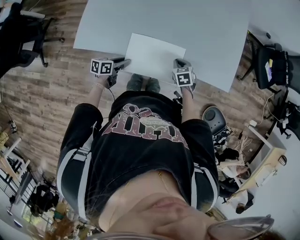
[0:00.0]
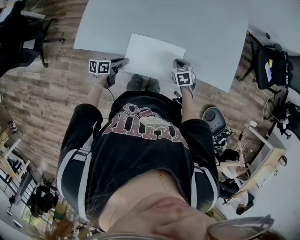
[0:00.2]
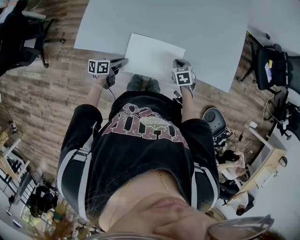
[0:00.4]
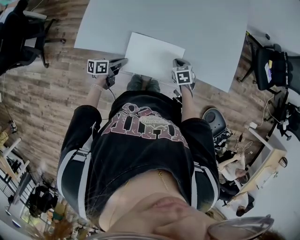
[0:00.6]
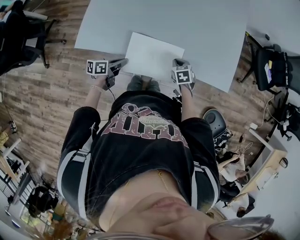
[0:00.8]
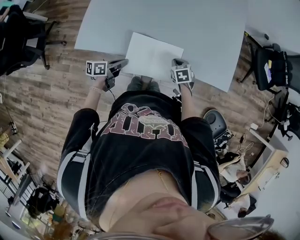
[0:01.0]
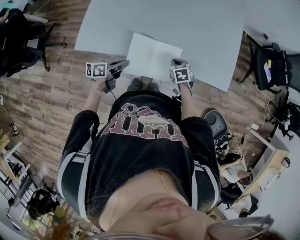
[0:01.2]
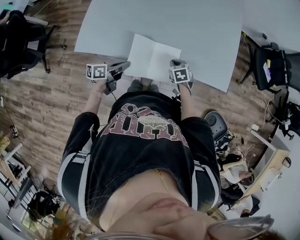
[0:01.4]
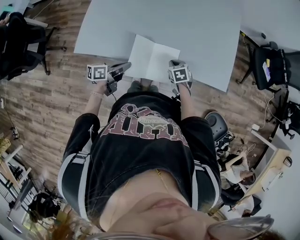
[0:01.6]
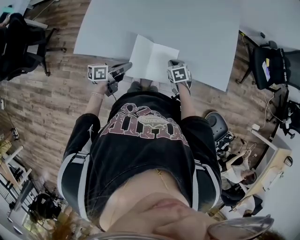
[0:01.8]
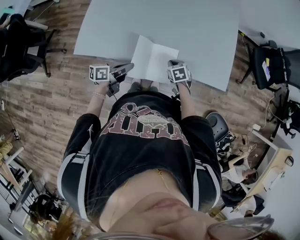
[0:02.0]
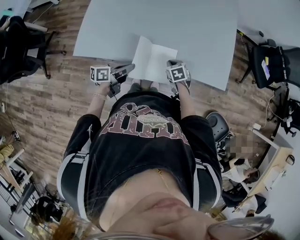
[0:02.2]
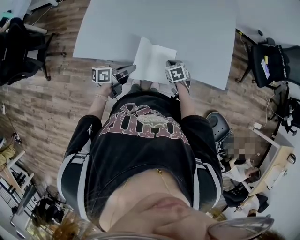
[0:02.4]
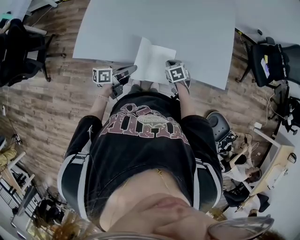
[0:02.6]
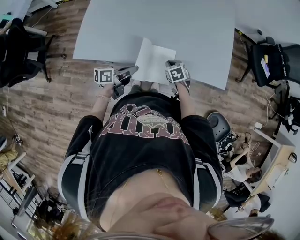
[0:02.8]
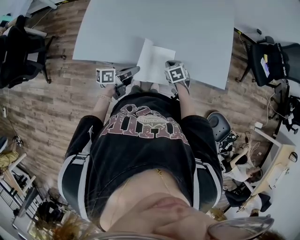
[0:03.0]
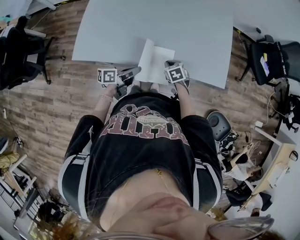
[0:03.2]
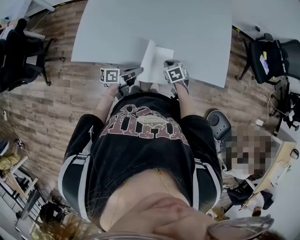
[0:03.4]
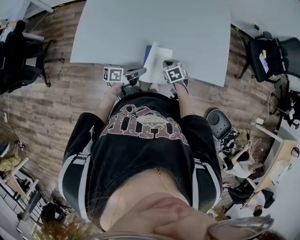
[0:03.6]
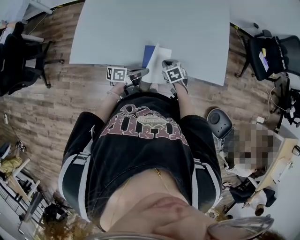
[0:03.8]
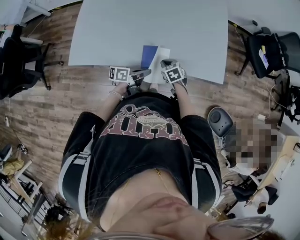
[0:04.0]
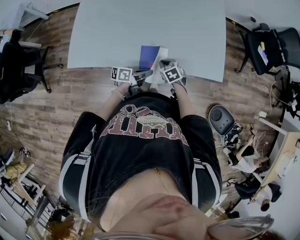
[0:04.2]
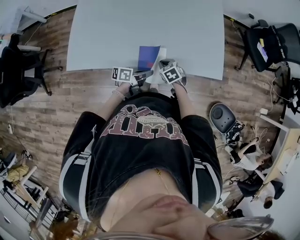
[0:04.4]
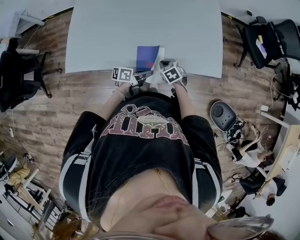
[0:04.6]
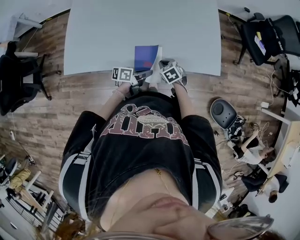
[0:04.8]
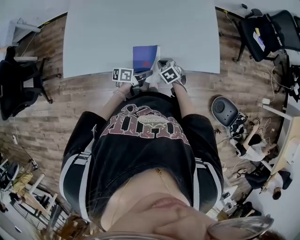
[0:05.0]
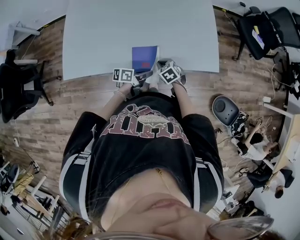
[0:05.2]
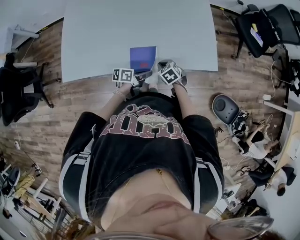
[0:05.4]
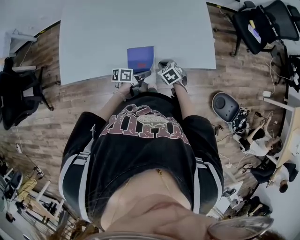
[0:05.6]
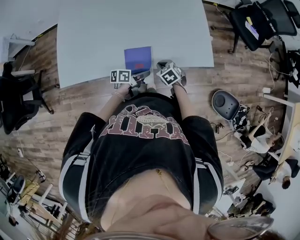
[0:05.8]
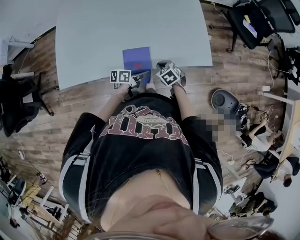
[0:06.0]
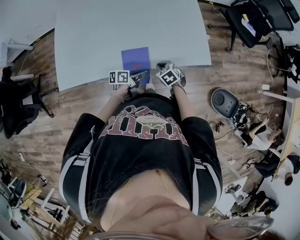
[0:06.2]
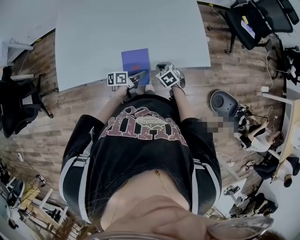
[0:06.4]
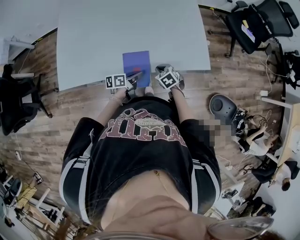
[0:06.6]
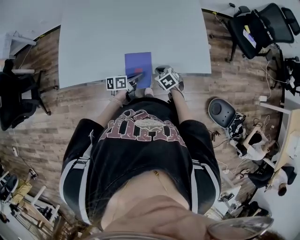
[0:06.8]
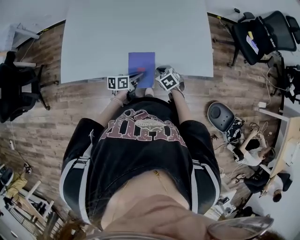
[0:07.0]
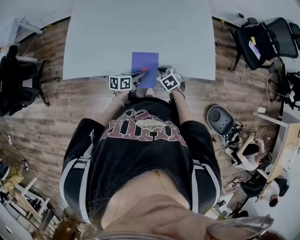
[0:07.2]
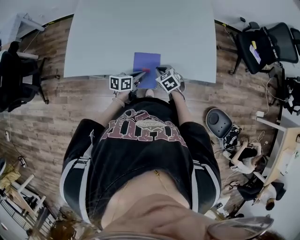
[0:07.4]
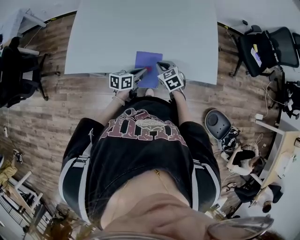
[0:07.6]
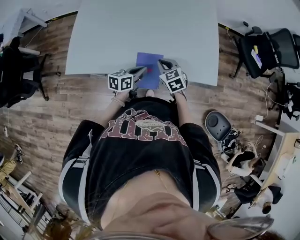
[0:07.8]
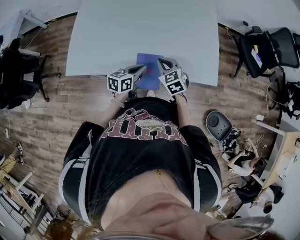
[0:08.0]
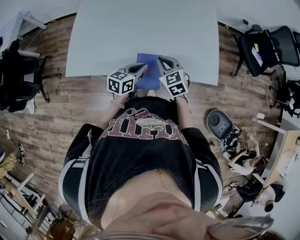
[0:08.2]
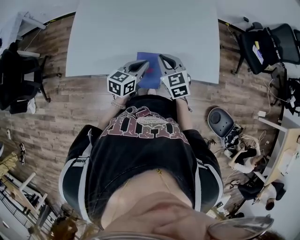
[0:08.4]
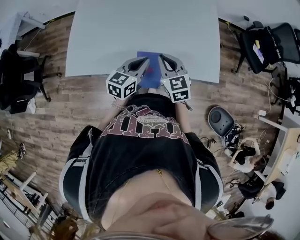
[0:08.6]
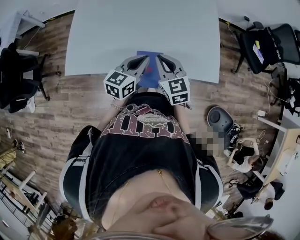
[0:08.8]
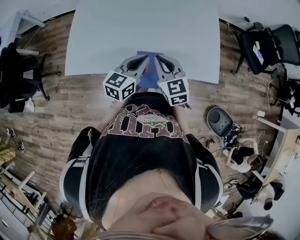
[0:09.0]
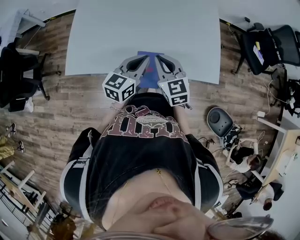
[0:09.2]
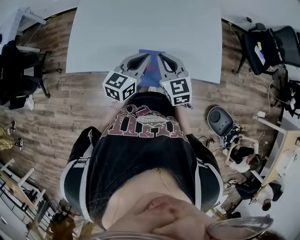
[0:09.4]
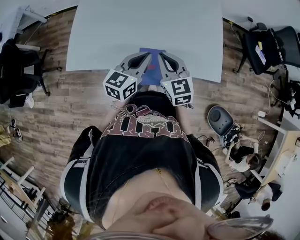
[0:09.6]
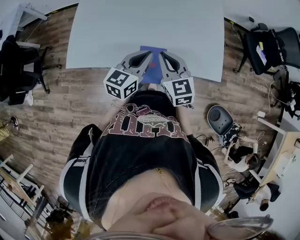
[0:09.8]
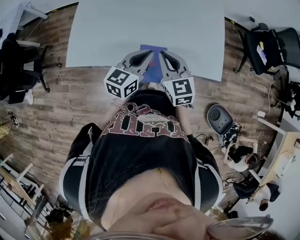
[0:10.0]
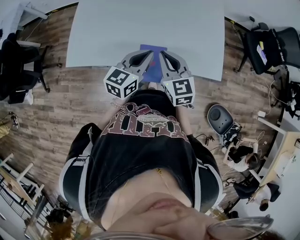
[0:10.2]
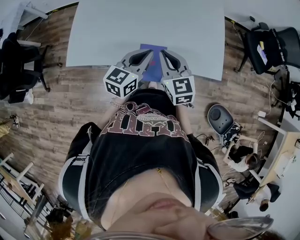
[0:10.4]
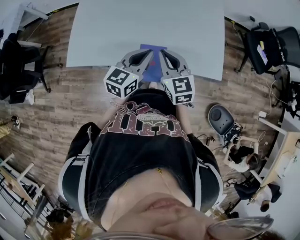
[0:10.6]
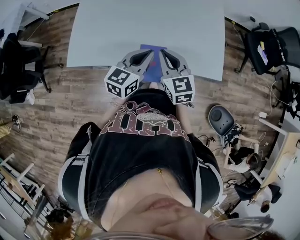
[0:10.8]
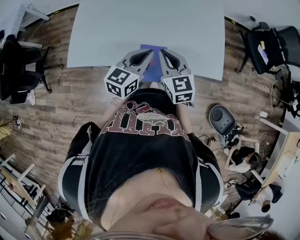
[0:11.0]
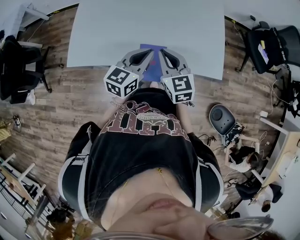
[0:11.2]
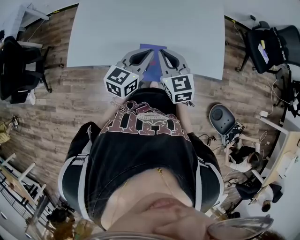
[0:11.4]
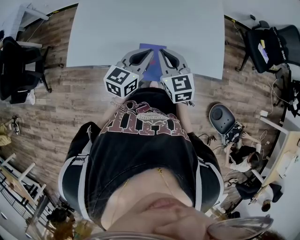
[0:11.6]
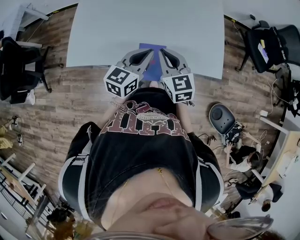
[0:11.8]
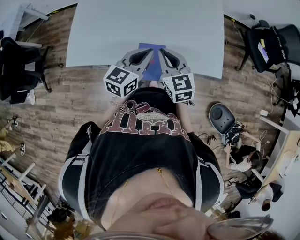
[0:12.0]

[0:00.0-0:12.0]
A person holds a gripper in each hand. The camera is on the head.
0:00.0 to 0:01.6: The left gripper goes roughly 10 cm upward, and closes its fingers.
0:01.6 to 0:03.0: The left gripper moves to the right, roughly 5 cm.
0:03.0 to 0:04.4: The left gripper is displaced to the right and downward by some 10 cm.
0:04.4 to 0:06.0: Both grippers travel together to the right, roughly 5 cm.
0:06.0 to 0:07.6: The two grippers go roughly 10 cm to the left and upward. The left gripper turns by about 30 degrees.
0:07.6 to 0:09.0: Both grippers travel together upward, about 15 cm. The right gripper swivels approximately 20 degrees. Meanwhile the left gripper swivels some 30 degrees.
0:09.0 to 0:10.4: The grippers stay close to where they were, moving slightly.
0:10.4 to 0:12.0: Both grippers stay put.

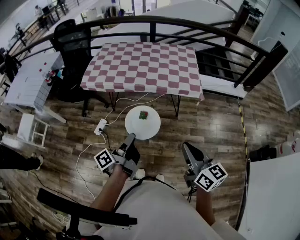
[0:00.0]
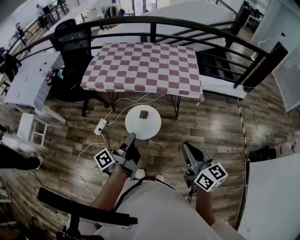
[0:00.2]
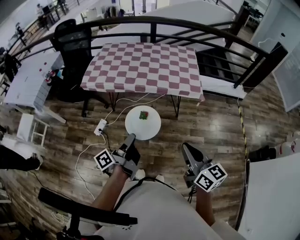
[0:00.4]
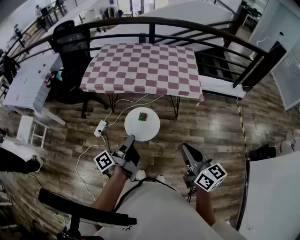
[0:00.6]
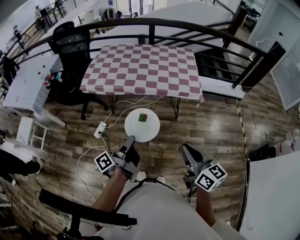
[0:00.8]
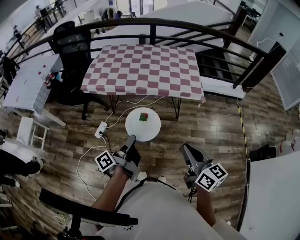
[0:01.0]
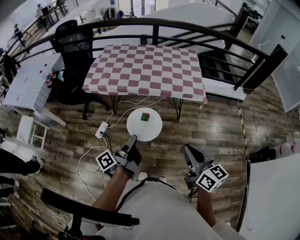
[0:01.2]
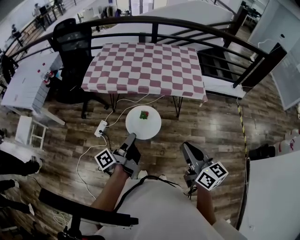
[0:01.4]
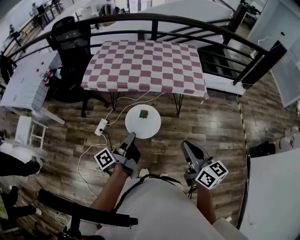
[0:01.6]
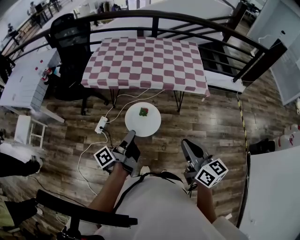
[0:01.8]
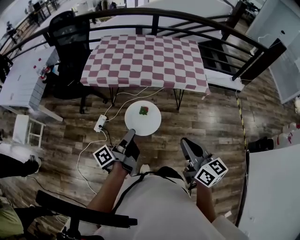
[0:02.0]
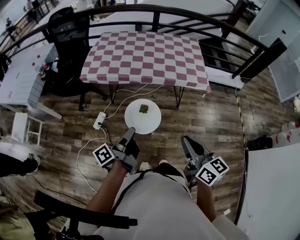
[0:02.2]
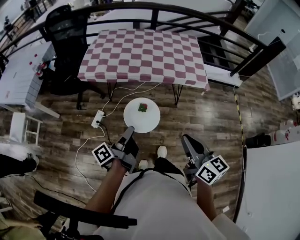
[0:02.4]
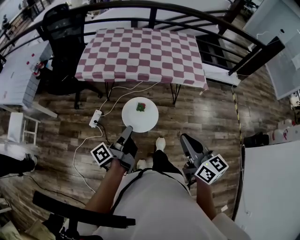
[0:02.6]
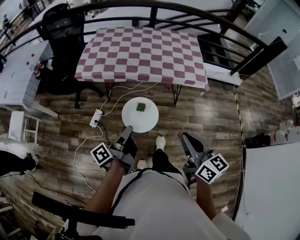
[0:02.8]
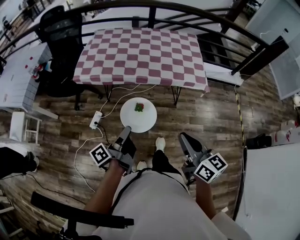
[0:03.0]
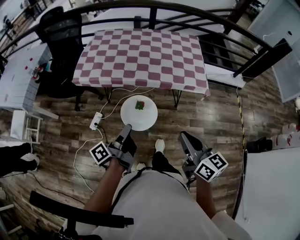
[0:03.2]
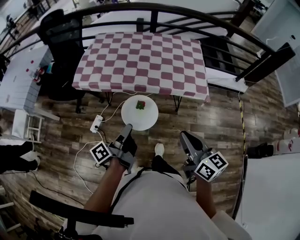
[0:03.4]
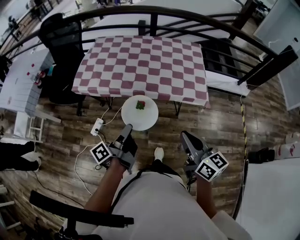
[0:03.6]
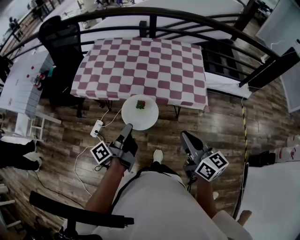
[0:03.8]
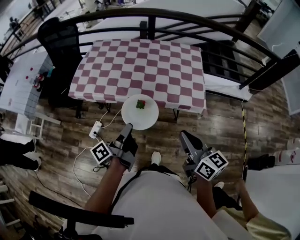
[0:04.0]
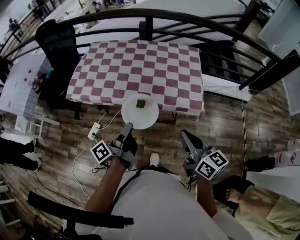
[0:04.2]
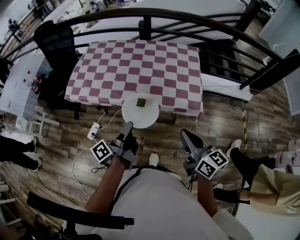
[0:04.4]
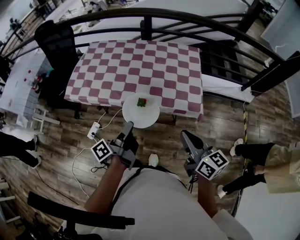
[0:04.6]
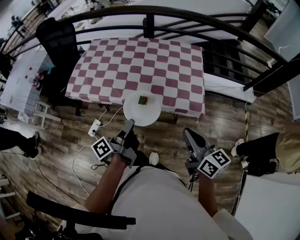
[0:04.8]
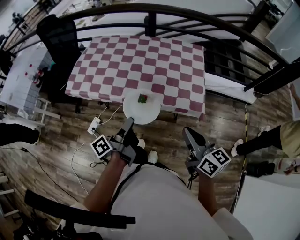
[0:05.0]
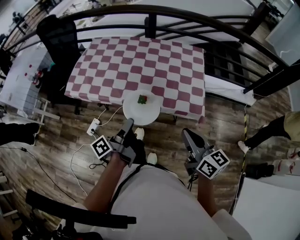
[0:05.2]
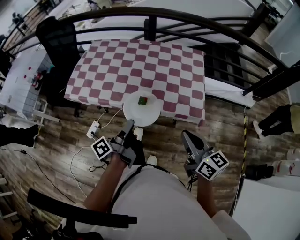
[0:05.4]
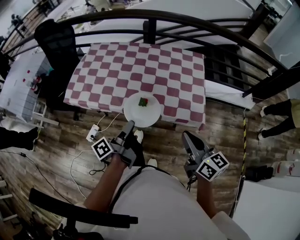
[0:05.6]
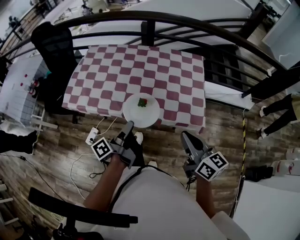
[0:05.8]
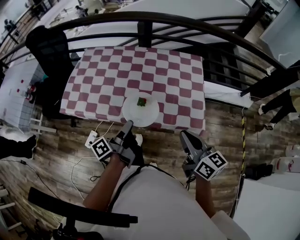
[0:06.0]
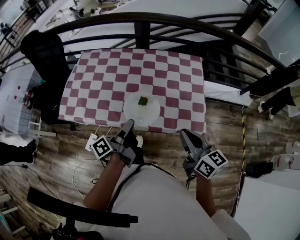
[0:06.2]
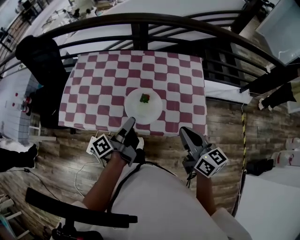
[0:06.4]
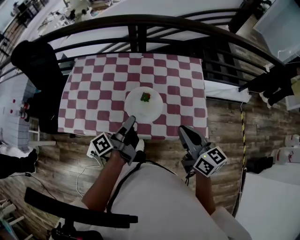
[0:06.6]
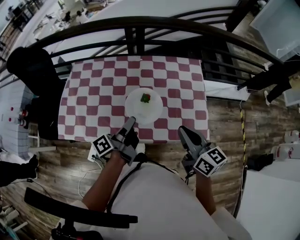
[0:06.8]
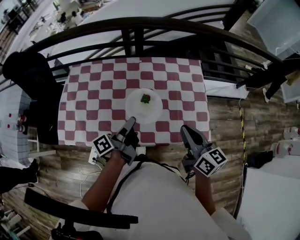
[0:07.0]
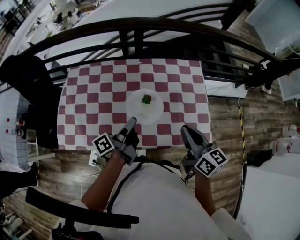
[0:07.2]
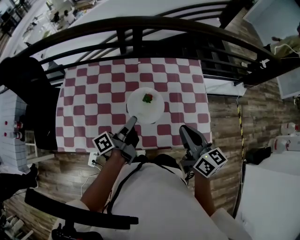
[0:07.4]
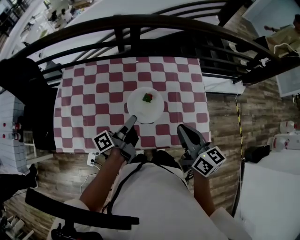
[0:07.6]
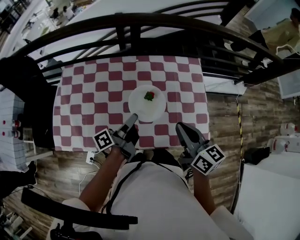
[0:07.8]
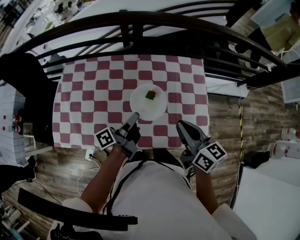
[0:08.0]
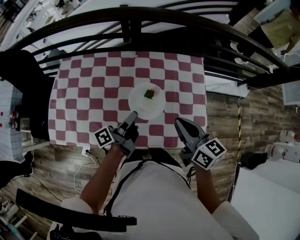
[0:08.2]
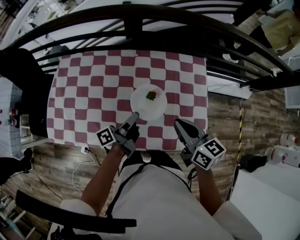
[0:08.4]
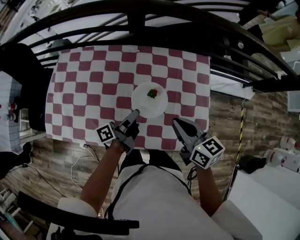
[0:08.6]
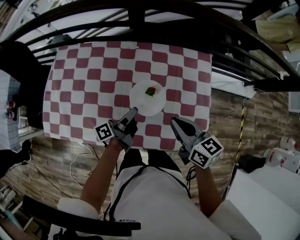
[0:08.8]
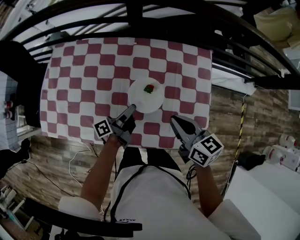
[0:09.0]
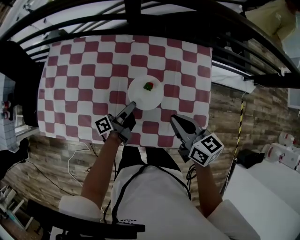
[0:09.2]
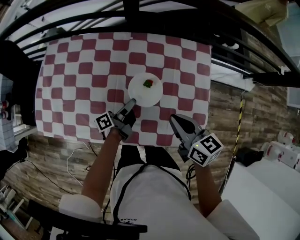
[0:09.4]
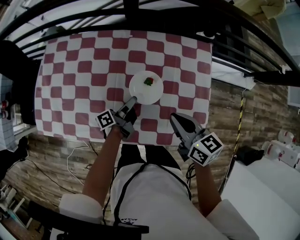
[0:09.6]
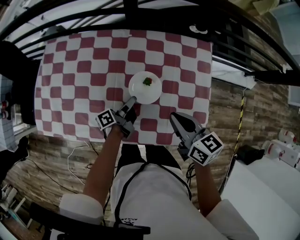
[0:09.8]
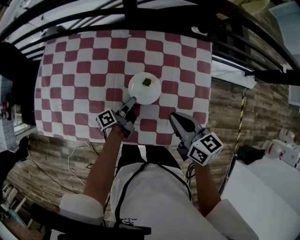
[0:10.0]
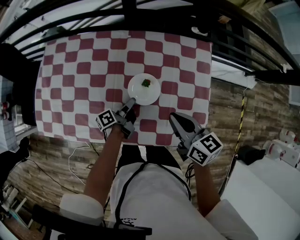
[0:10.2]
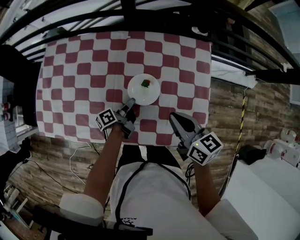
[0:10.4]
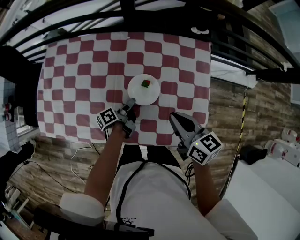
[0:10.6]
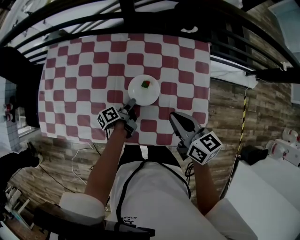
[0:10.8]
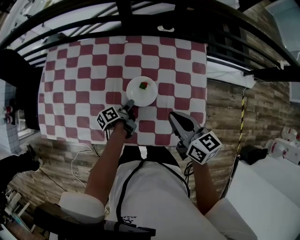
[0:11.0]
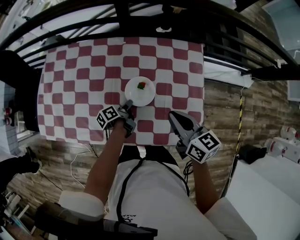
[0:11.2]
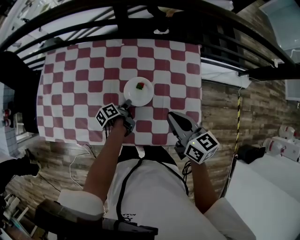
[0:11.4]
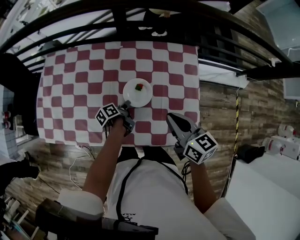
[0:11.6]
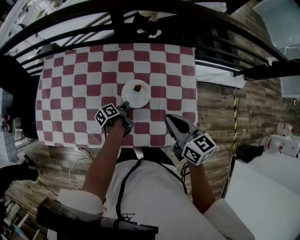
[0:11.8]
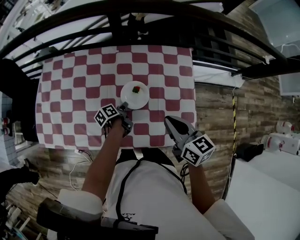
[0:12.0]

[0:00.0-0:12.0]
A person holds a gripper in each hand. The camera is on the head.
0:00.0 to 0:01.6: The right gripper shifts by about 10 cm.
0:01.6 to 0:03.0: The right gripper changes place by approximately 5 cm.
0:03.0 to 0:04.4: The right gripper shifts by about 30 cm.
0:04.4 to 0:06.0: The right gripper ends up roughly 15 cm from where it was.
0:06.0 to 0:07.6: The right gripper changes place by approximately 25 cm.
0:07.6 to 0:09.0: The right gripper moves downward, approximately 10 cm, and swivels some 20 degrees.
0:10.4 to 0:12.0: The right gripper ends up roughly 5 cm from where it was.
